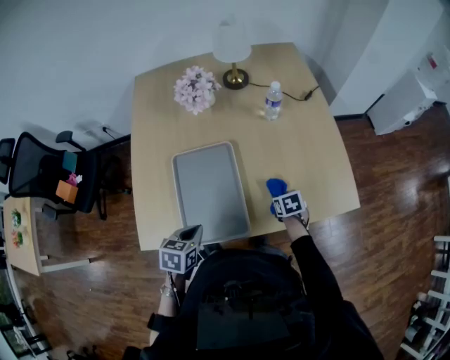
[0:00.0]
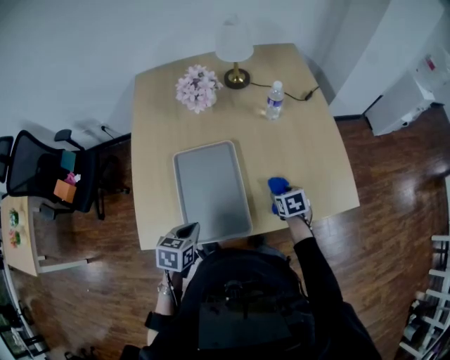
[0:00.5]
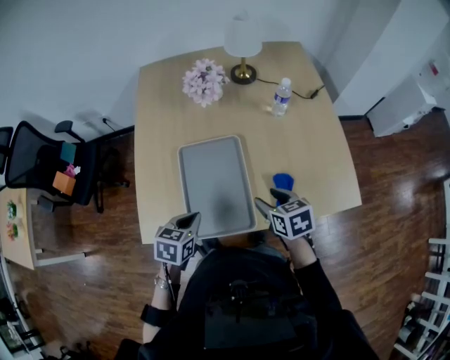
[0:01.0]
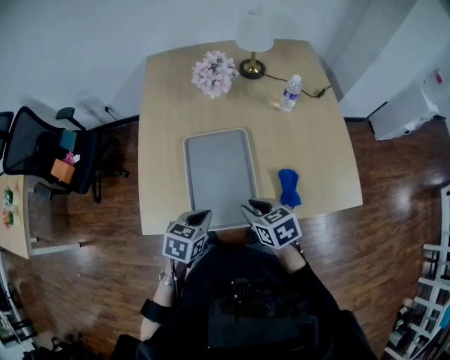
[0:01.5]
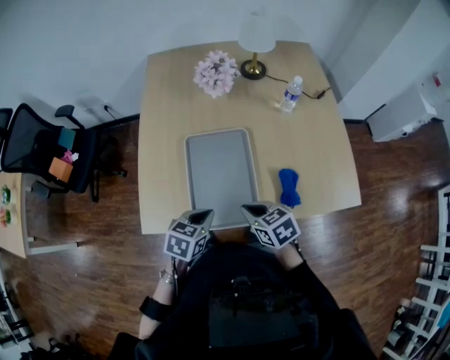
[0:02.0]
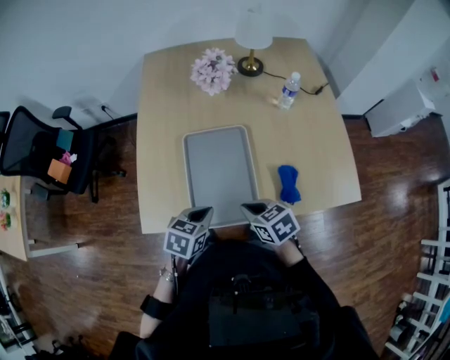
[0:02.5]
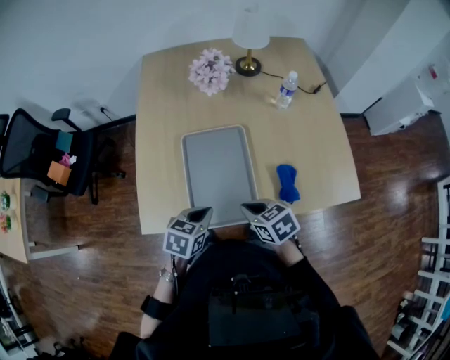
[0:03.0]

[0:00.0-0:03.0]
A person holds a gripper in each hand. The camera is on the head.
0:00.0 to 0:01.5: The right gripper is displaced to the left, upward and backward by some 25 cm, turns by approximately 20 degrees, and opens, then closes again.
0:01.5 to 0:03.0: The right gripper closes.

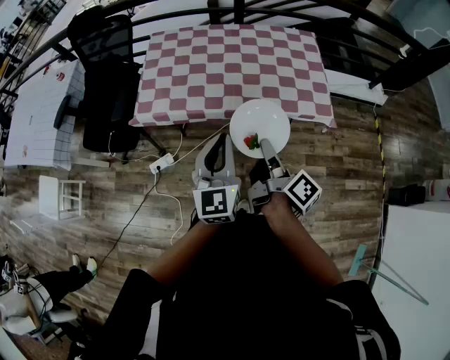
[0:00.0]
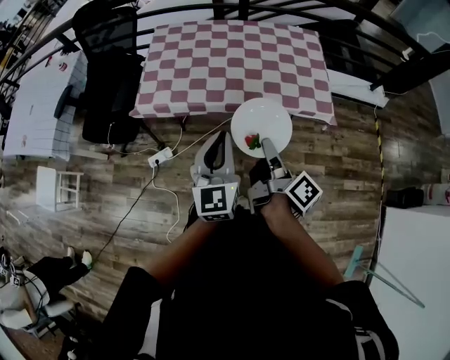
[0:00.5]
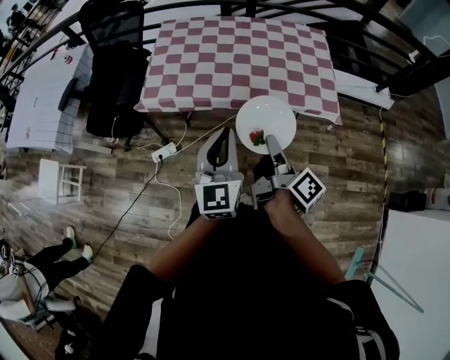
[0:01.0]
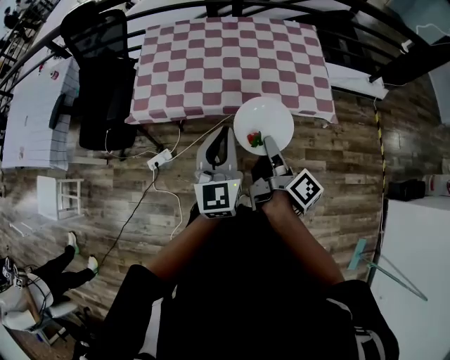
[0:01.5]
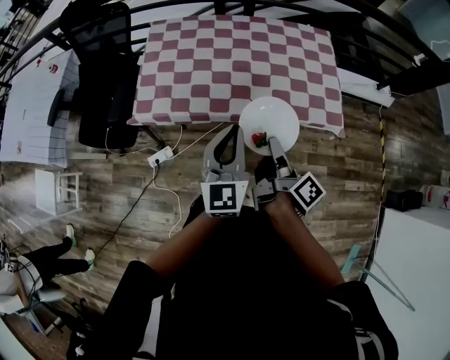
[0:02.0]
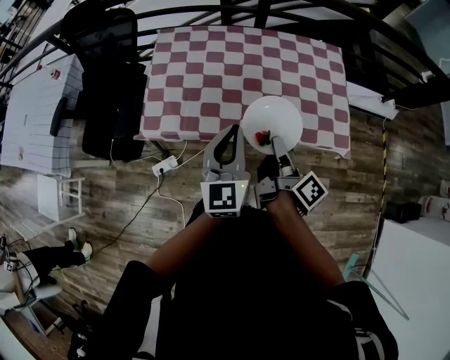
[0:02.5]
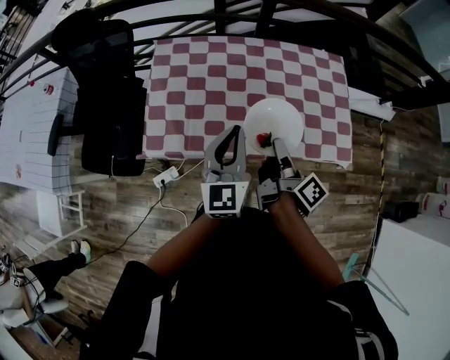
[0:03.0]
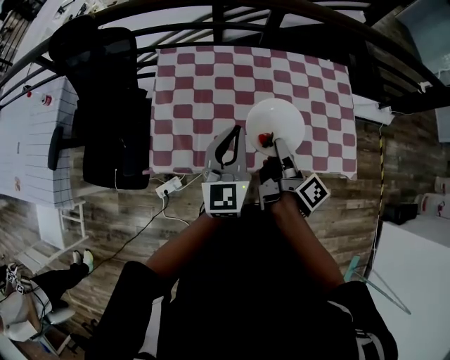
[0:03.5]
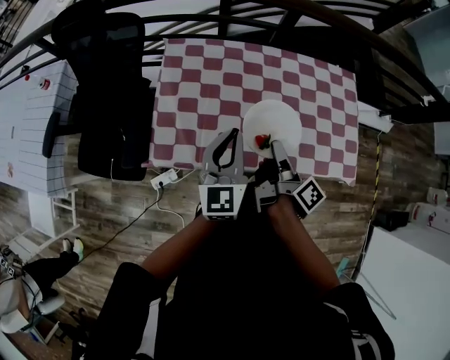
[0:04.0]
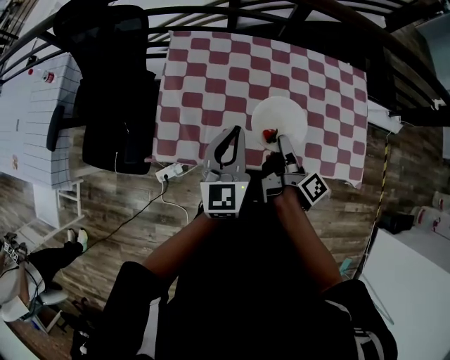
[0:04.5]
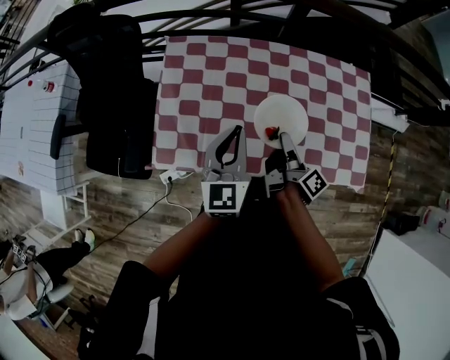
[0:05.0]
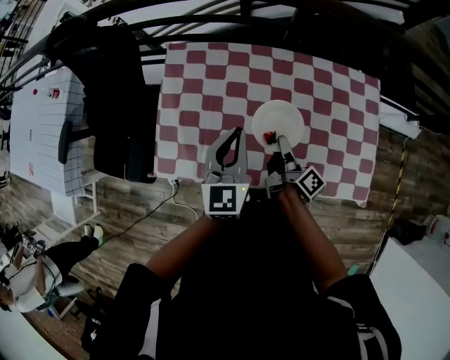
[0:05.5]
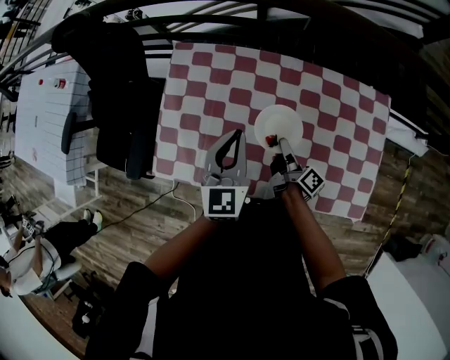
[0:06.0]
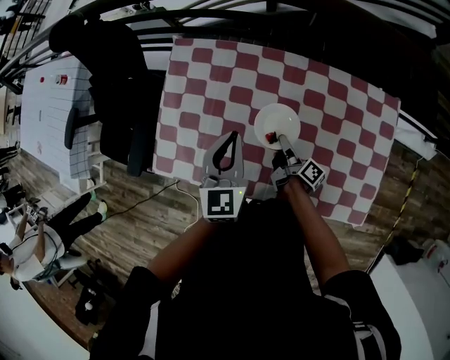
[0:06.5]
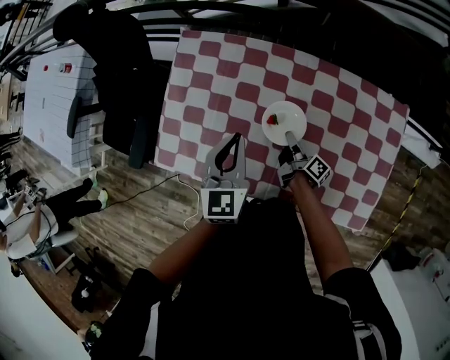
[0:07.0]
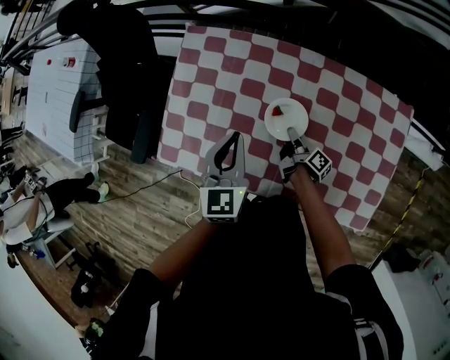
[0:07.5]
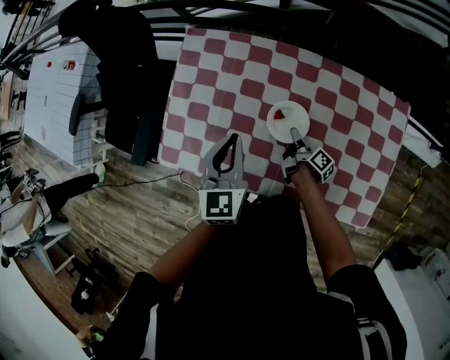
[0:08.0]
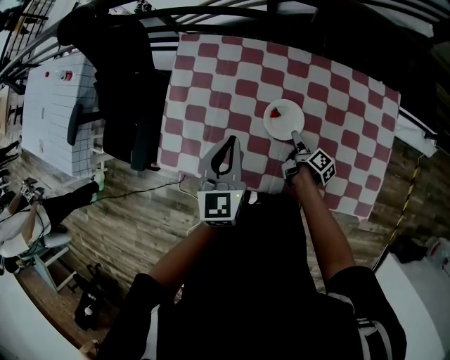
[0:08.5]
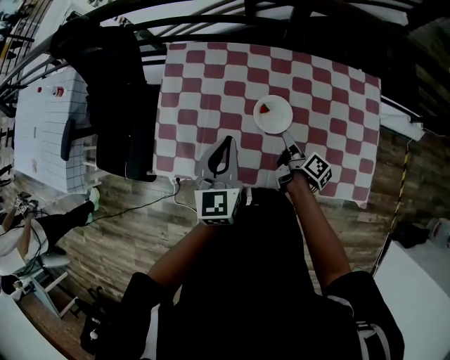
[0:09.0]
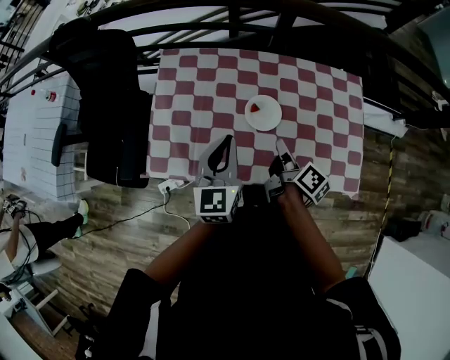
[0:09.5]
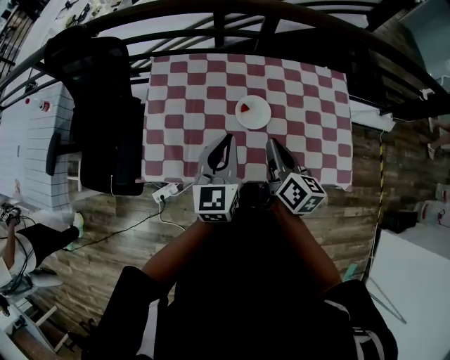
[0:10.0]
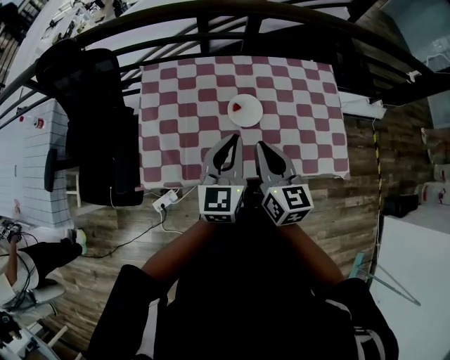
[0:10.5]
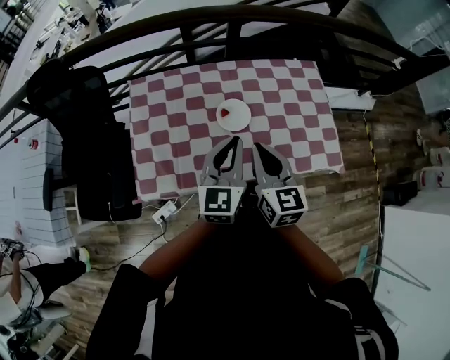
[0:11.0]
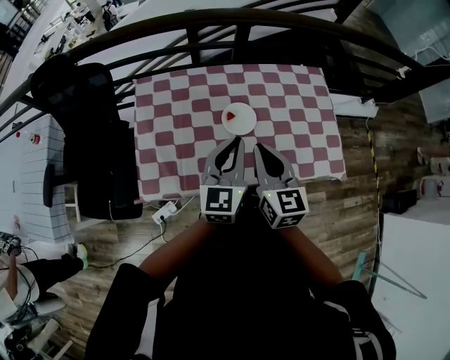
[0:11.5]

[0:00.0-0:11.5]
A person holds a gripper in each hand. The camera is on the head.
0:00.0 to 0:02.0: The left gripper shifts by some 10 cm.
0:02.0 to 0:04.0: The left gripper moves about 30 cm.
0:04.0 to 0:06.0: The left gripper ends up approximately 15 cm from where it was.
0:07.5 to 0:09.5: The left gripper ends up some 10 cm from where it was.
0:09.5 to 0:11.5: The left gripper ends up about 5 cm from where it was.

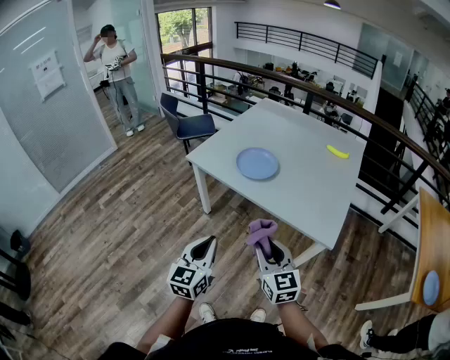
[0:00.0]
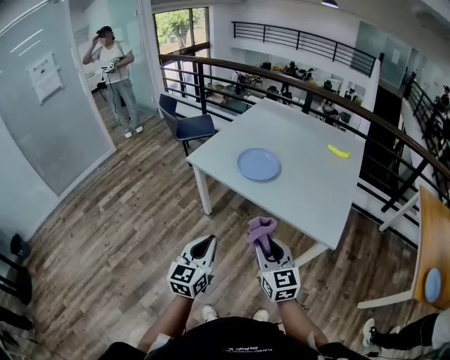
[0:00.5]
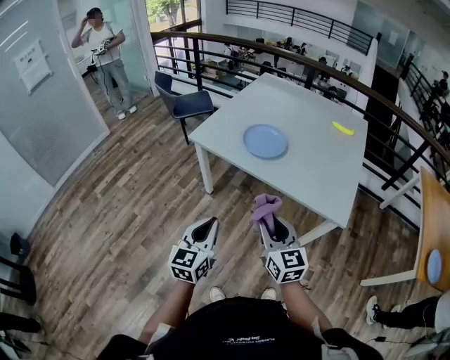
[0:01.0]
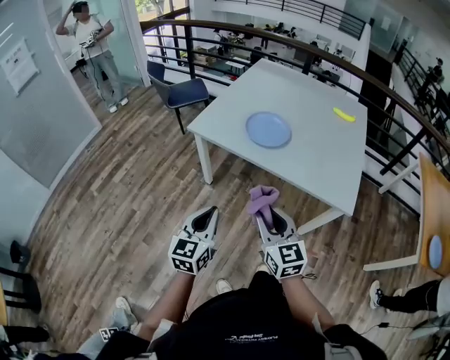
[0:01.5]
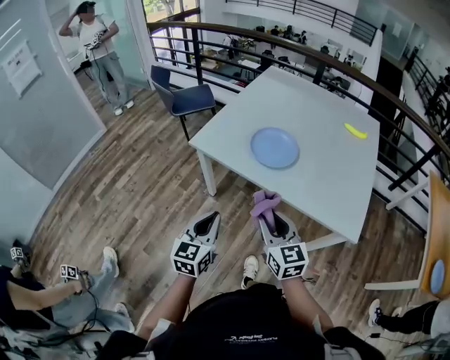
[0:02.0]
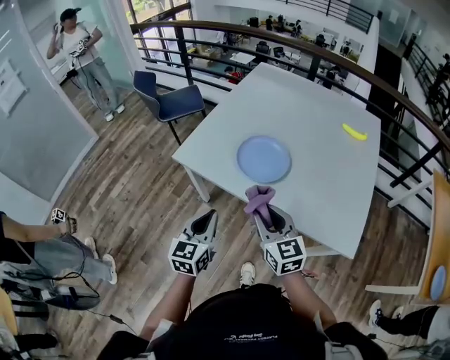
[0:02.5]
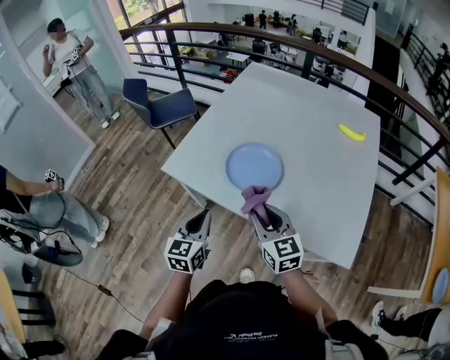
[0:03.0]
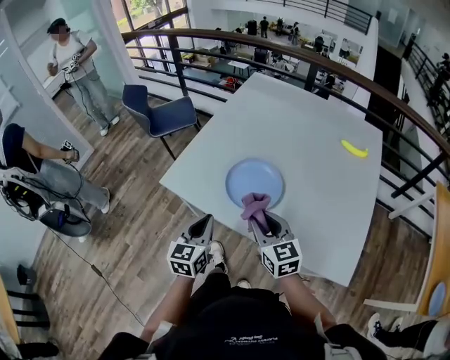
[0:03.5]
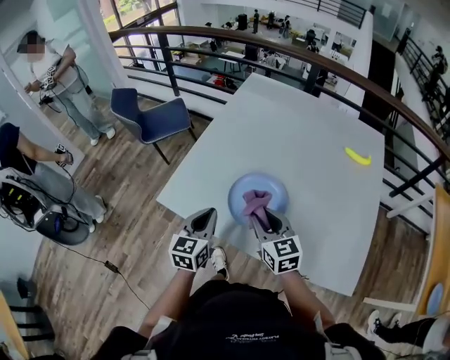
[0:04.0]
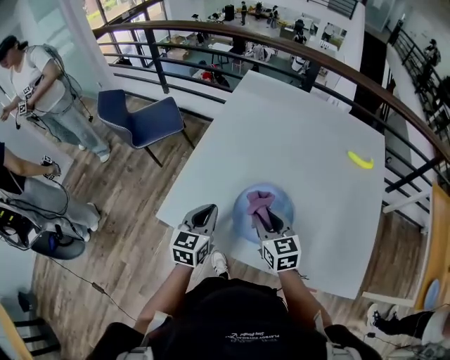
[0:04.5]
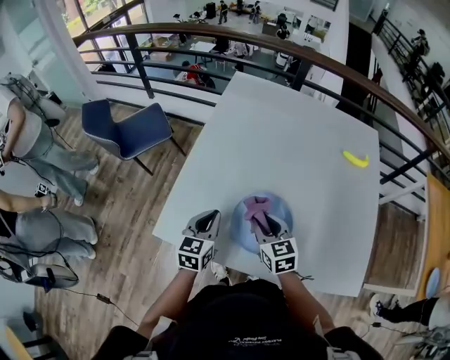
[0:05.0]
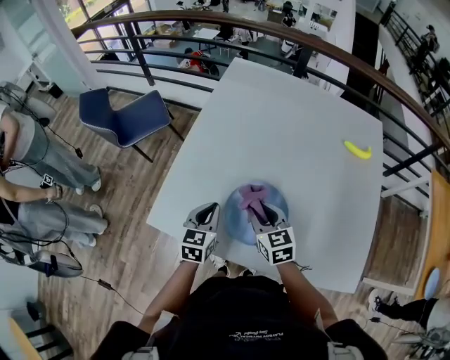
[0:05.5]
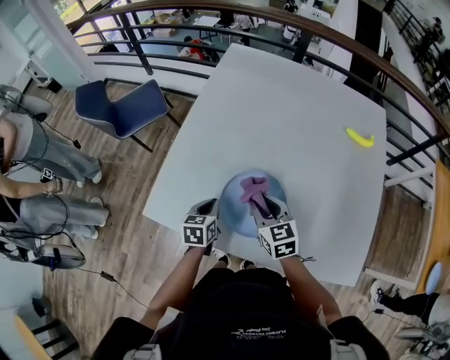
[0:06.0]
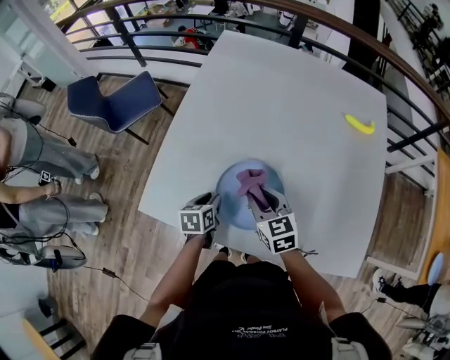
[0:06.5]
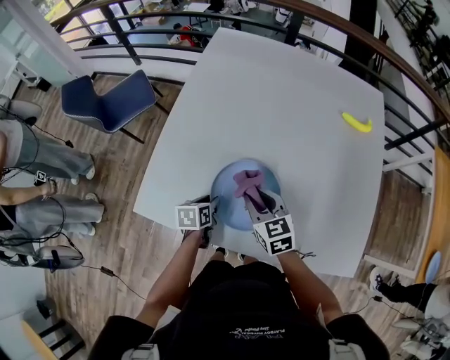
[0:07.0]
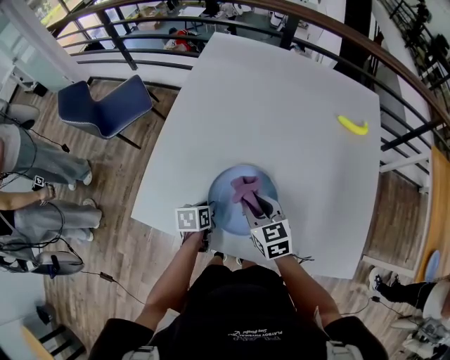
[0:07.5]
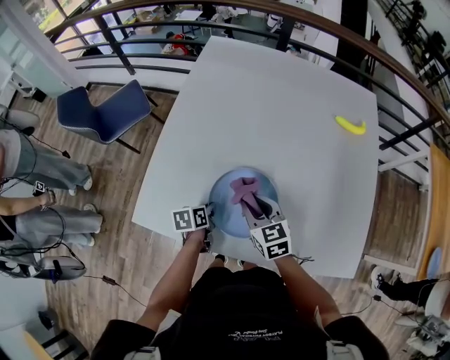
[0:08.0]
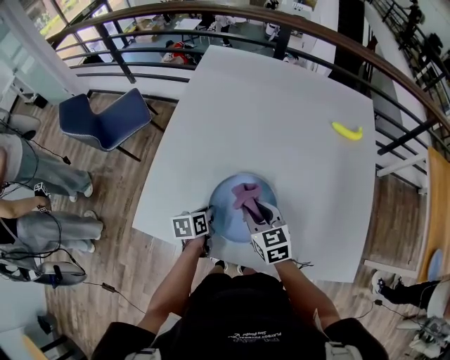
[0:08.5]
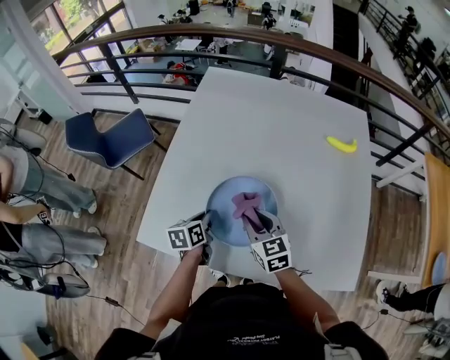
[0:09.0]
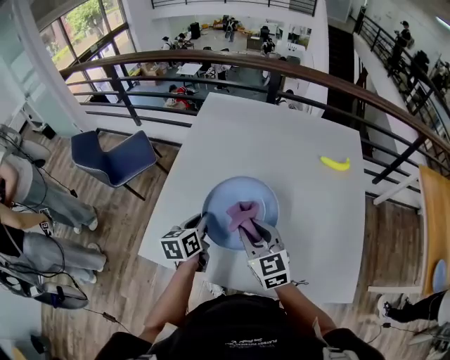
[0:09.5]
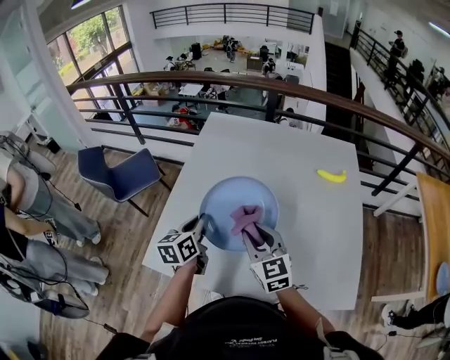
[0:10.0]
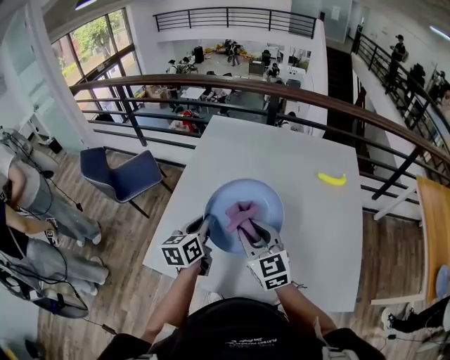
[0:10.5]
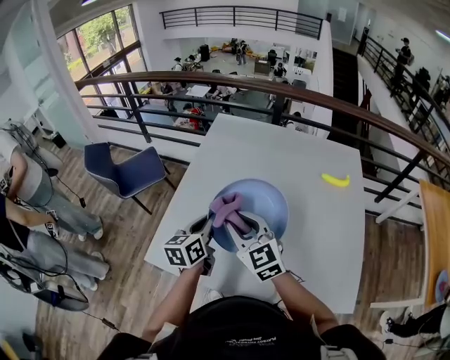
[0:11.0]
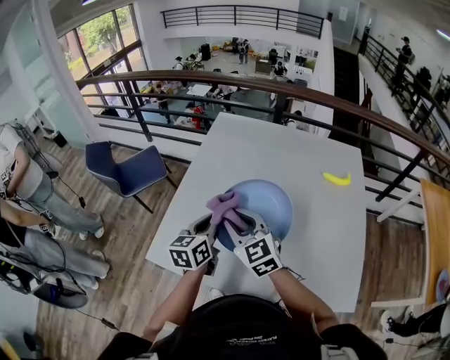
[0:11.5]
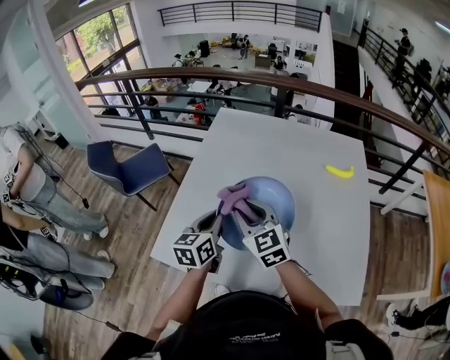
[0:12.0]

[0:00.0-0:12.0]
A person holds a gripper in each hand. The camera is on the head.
0:00.0 to 0:02.0: Both grippers travel together forward and to the left, some 20 cm.
0:02.0 to 0:04.0: The two grippers go some 35 cm forward.
0:04.0 to 0:06.0: The left gripper is displaced downward and forward by approximately 20 cm, and changes its angle by some 30 degrees, while the right gripper is displaced forward and downward by some 15 cm.
0:06.0 to 0:08.0: The left gripper moves downward, approximately 10 cm, changes its angle by approximately 30 degrees, and opens, then closes again.
0:08.0 to 0:10.0: The left gripper heads upward, covering approximately 25 cm, and rotates some 40 degrees. Meanwhile the right gripper is displaced upward by about 15 cm, and changes its angle by roughly 20 degrees.
0:10.0 to 0:12.0: The right gripper travels to the left by approximately 5 cm.
